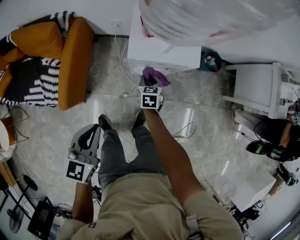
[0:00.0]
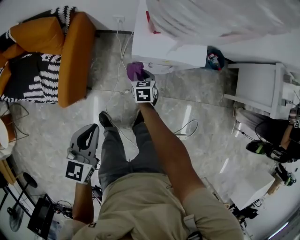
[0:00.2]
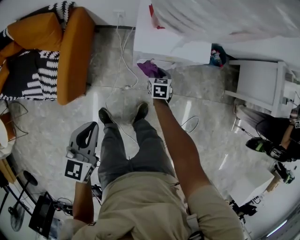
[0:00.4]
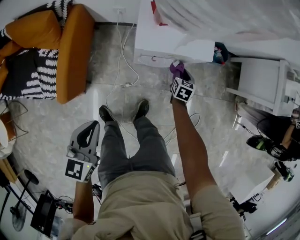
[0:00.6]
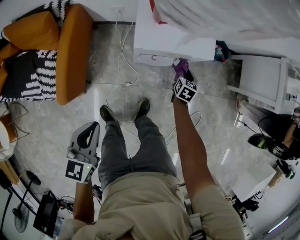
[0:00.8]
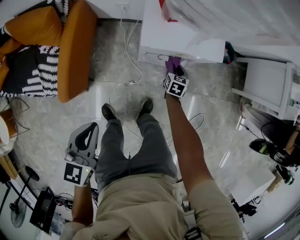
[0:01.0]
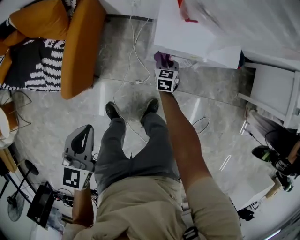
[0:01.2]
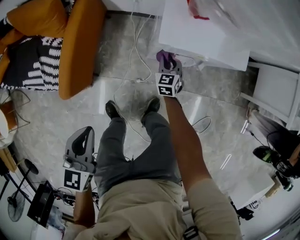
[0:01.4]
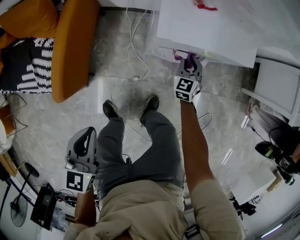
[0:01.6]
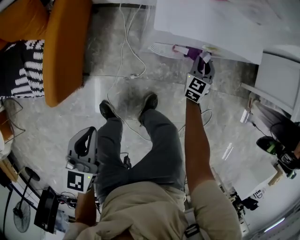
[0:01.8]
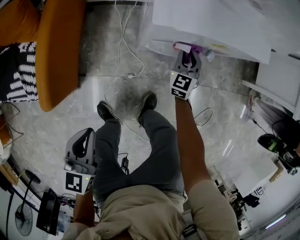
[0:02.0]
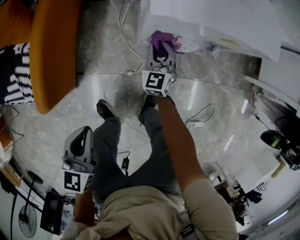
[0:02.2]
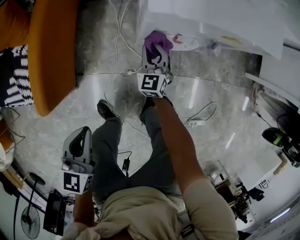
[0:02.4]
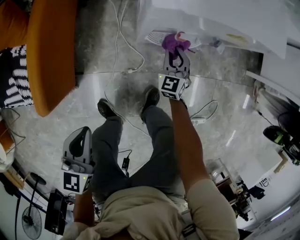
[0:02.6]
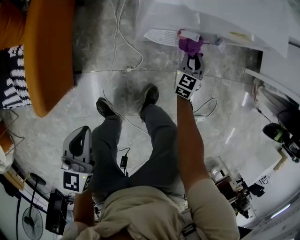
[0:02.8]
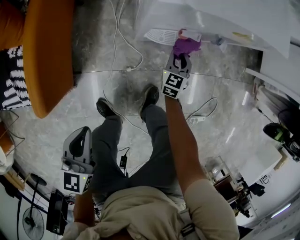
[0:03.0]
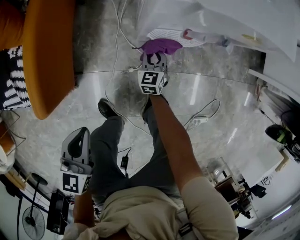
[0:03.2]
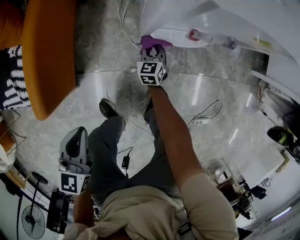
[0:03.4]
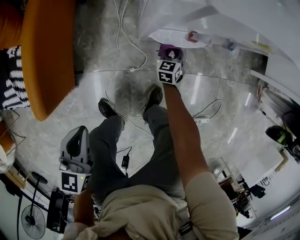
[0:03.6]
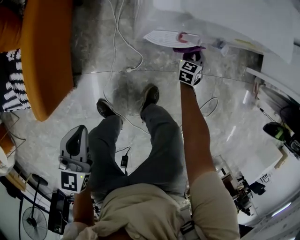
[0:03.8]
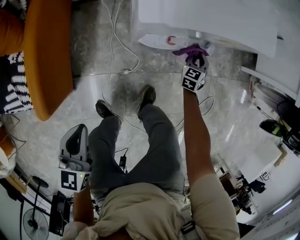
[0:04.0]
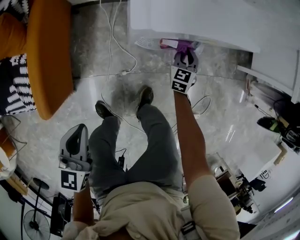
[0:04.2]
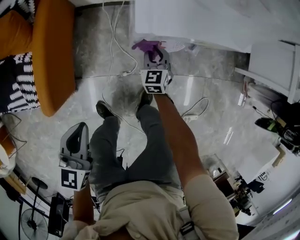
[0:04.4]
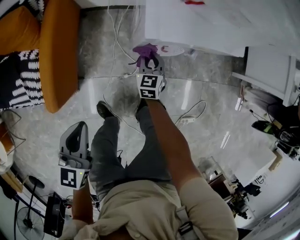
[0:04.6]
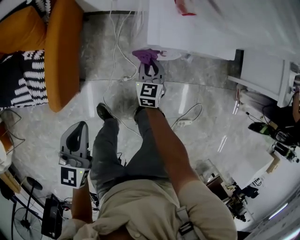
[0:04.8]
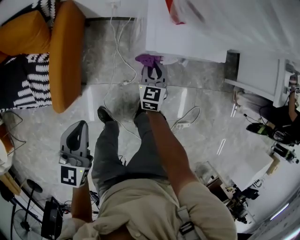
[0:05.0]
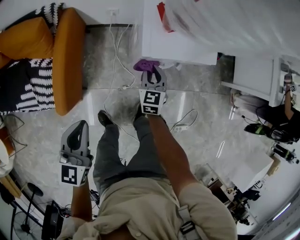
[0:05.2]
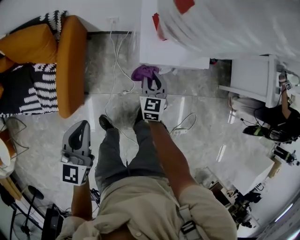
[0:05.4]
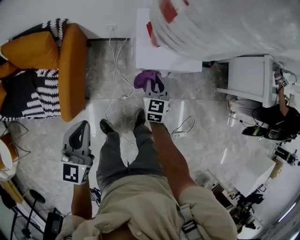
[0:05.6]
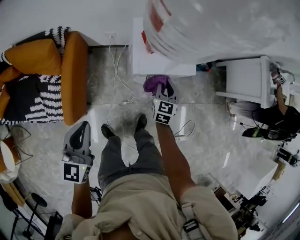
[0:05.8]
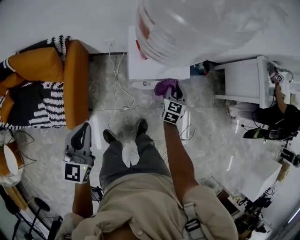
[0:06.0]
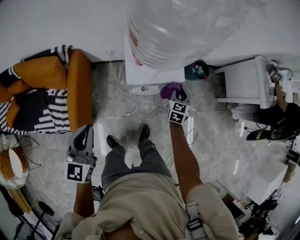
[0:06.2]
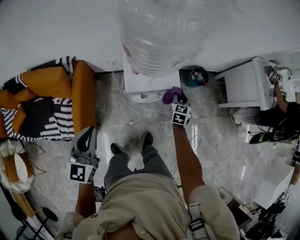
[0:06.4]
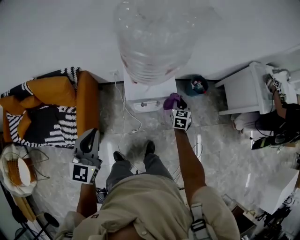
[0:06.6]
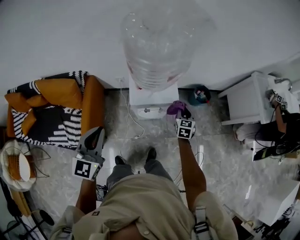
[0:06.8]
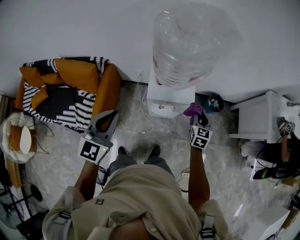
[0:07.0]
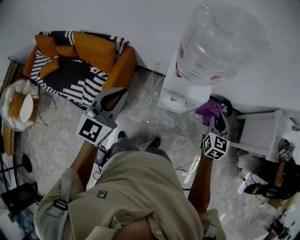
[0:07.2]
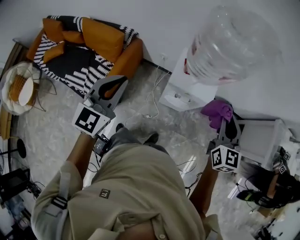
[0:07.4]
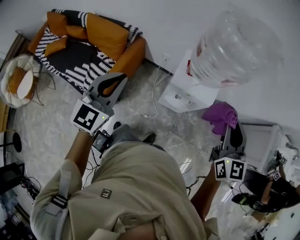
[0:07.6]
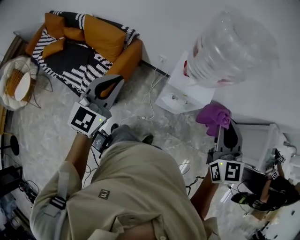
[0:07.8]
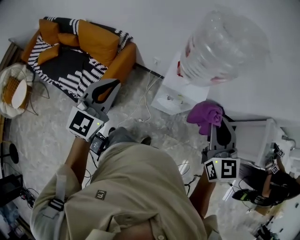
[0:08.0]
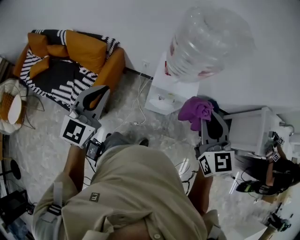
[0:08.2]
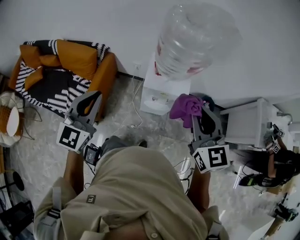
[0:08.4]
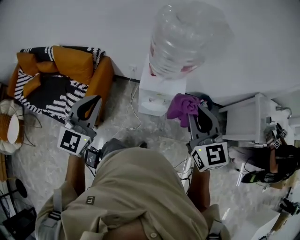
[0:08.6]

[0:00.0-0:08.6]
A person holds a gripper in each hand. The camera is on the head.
0:00.0 to 0:01.4: The right gripper goes left and right, about 25 cm each way, reversing 2 times, and turns by roughly 20 degrees, while the left gripper shifts approximately 10 cm downward and to the left.
0:01.4 to 0:02.8: The left gripper goes about 15 cm downward, while the right gripper moves left and right over about 20 cm, changing direction 2 times, and changes its angle by approximately 20 degrees.
0:02.8 to 0:04.4: The left gripper shifts approximately 10 cm upward. The right gripper moves left and right over about 25 cm, changing direction 2 times.
0:04.4 to 0:05.8: Both grippers move upward, approximately 25 cm.
0:05.8 to 0:07.2: The right gripper shifts roughly 30 cm upward and to the right. The left gripper goes approximately 20 cm upward.
0:07.2 to 0:08.6: The left gripper moves about 5 cm, while the right gripper heads upward, backward and to the left, covering about 20 cm, and turns by roughly 20 degrees.

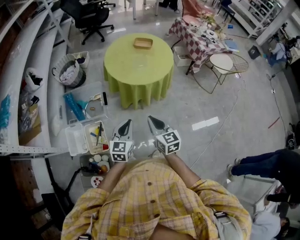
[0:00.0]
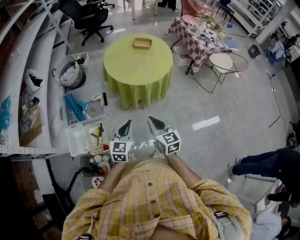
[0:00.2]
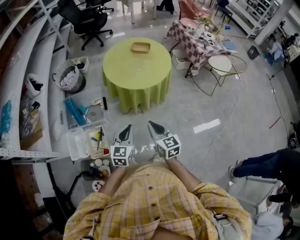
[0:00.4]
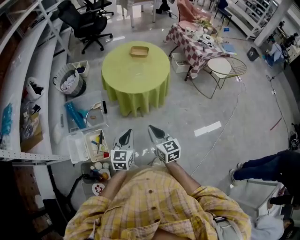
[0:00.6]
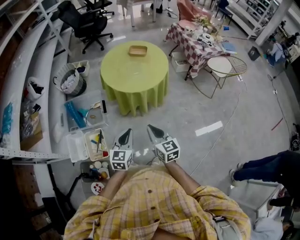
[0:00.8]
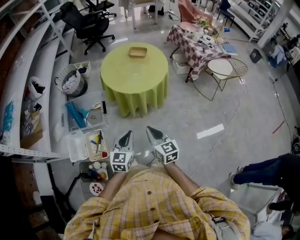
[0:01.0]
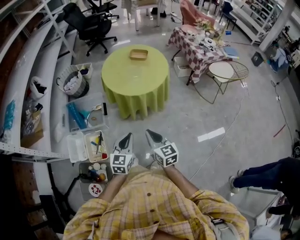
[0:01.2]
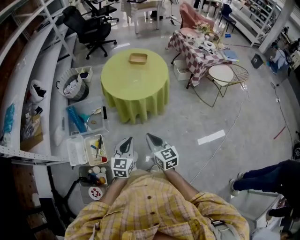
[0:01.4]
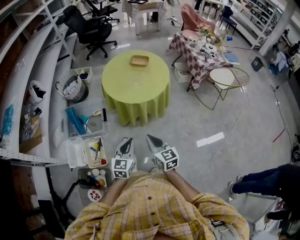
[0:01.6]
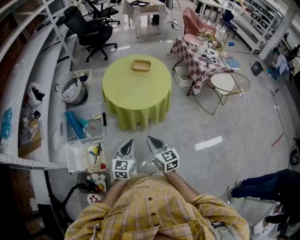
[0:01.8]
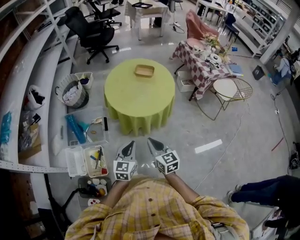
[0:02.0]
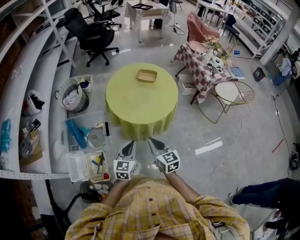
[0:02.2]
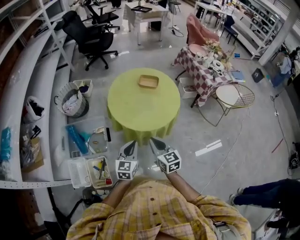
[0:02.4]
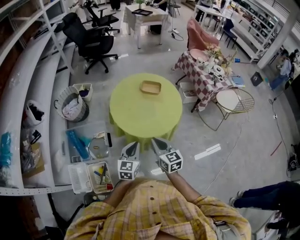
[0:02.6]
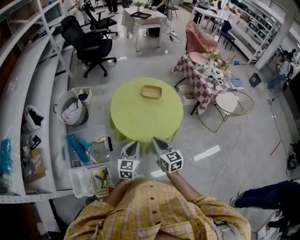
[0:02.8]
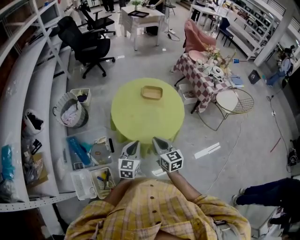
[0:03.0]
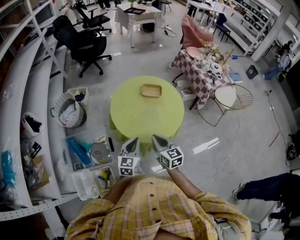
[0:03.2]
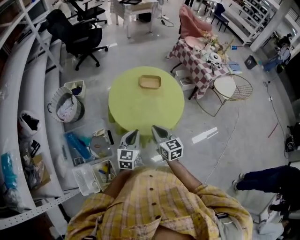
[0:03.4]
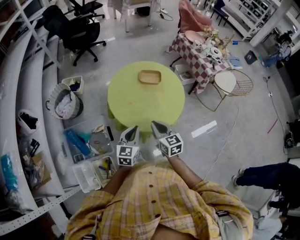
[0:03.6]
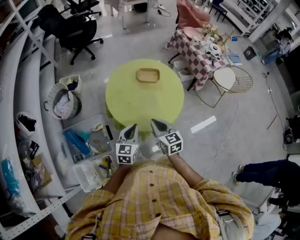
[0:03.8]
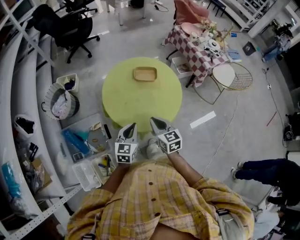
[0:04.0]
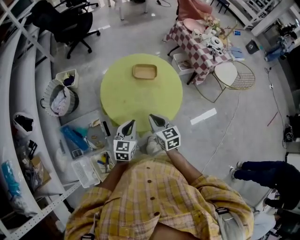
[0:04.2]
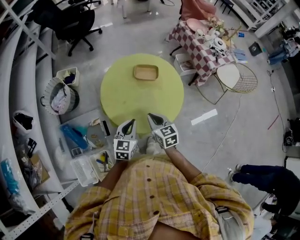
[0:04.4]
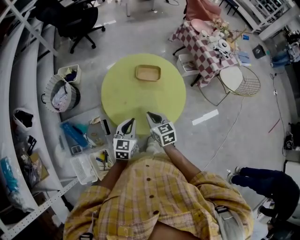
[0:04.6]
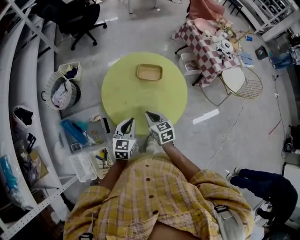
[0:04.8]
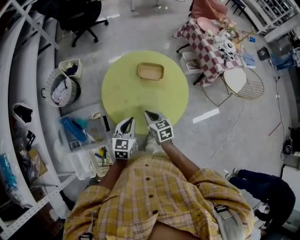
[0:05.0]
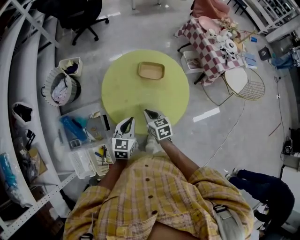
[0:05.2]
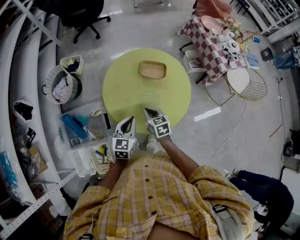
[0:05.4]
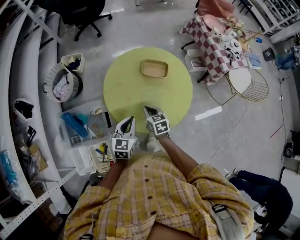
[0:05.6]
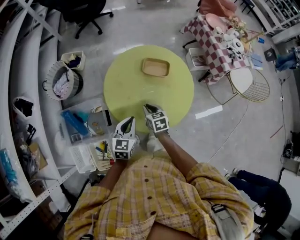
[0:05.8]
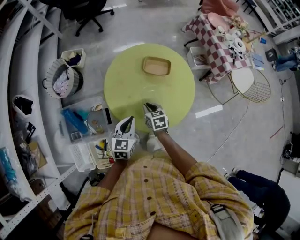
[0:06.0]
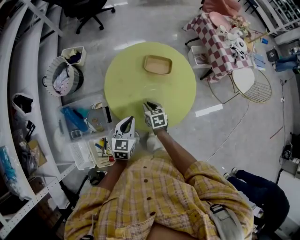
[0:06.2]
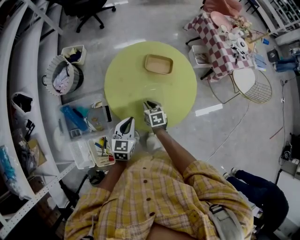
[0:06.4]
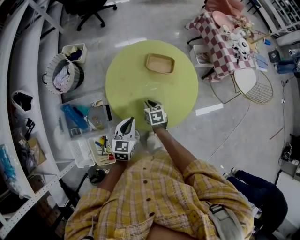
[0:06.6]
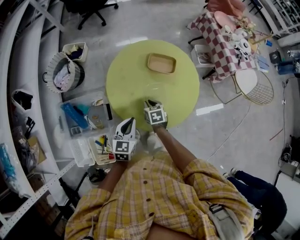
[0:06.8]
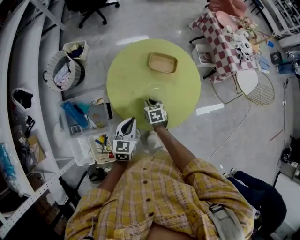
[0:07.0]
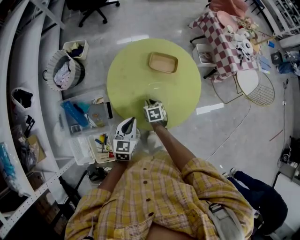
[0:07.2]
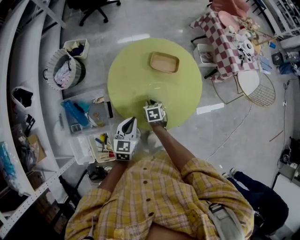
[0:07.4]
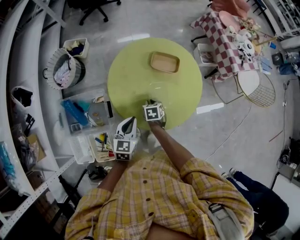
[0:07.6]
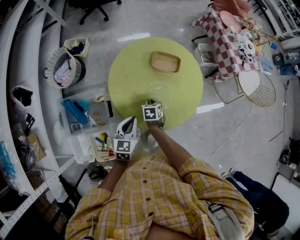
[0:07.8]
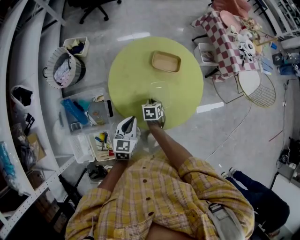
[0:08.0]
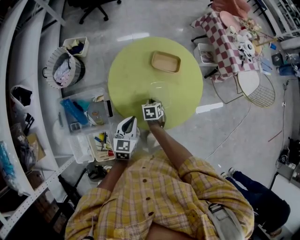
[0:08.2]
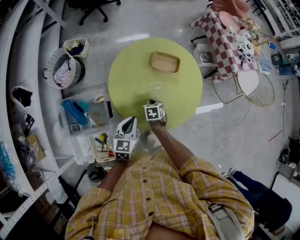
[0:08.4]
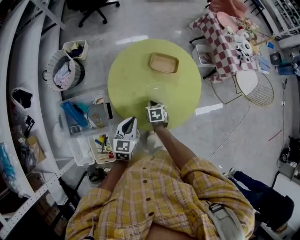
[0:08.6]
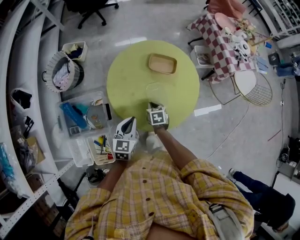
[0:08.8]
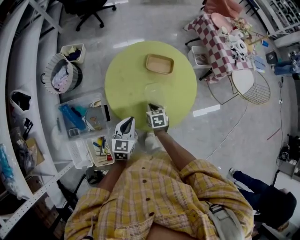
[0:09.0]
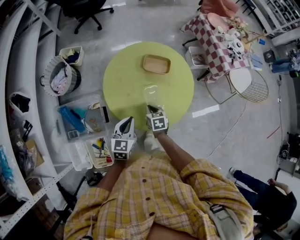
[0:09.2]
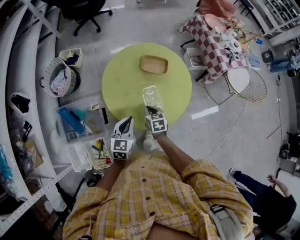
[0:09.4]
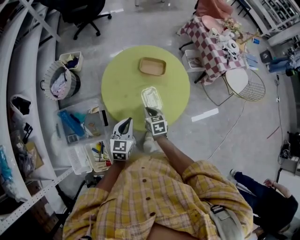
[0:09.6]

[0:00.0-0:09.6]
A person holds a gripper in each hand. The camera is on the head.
0:00.0 to 0:01.6: The grippers both shift to the right by roughly 5 cm.
0:01.6 to 0:03.2: The two grippers go about 30 cm forward.
0:03.2 to 0:04.8: The right gripper goes some 20 cm forward and downward. Meanwhile the left gripper moves forward, roughly 15 cm.
0:04.8 to 0:06.4: The right gripper is displaced downward and forward by approximately 15 cm.
0:06.4 to 0:08.0: The grippers stay close to where they were, moving slightly.
0:08.0 to 0:09.6: The right gripper moves upward and backward, approximately 10 cm, and changes its angle by approximately 20 degrees.

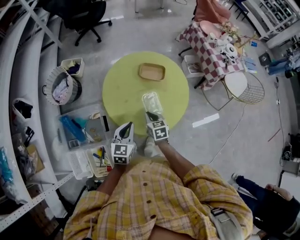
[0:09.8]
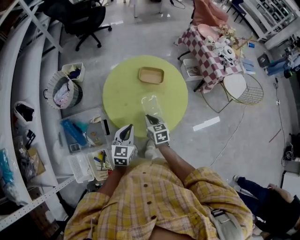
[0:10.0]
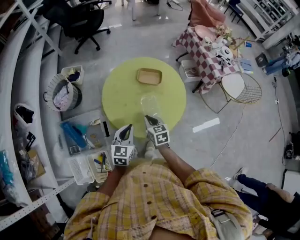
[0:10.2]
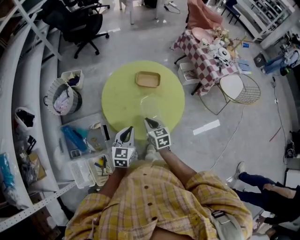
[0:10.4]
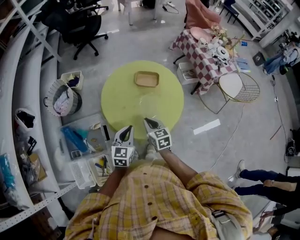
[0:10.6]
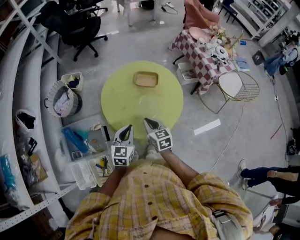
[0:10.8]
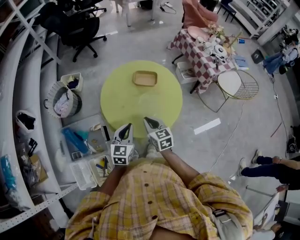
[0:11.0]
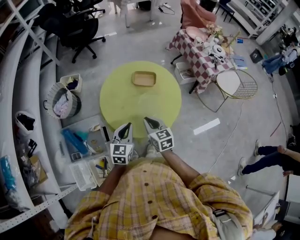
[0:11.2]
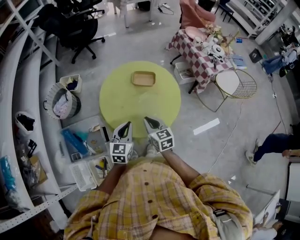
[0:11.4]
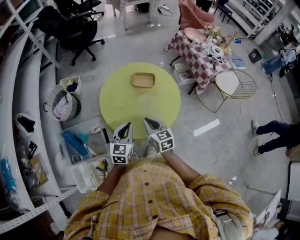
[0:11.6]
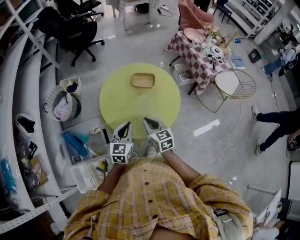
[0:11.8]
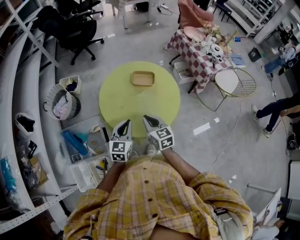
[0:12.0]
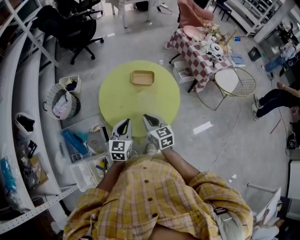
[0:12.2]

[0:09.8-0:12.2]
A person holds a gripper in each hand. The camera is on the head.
0:09.8 to 0:11.0: The right gripper heads upward, covering some 10 cm.
0:11.0 to 0:12.2: The grippers stay close to where they were, moving slightly.

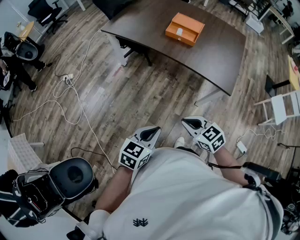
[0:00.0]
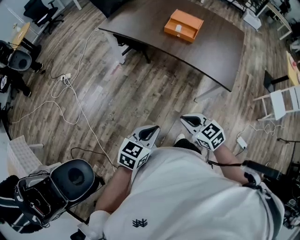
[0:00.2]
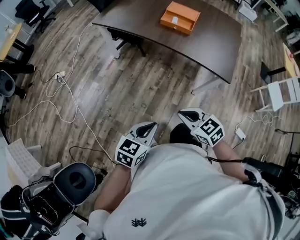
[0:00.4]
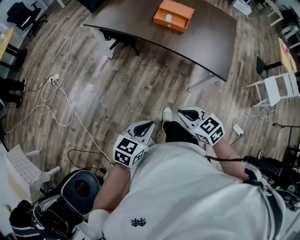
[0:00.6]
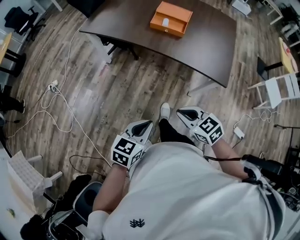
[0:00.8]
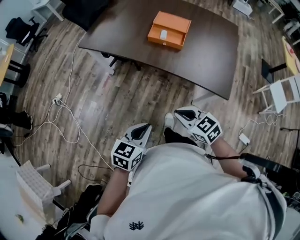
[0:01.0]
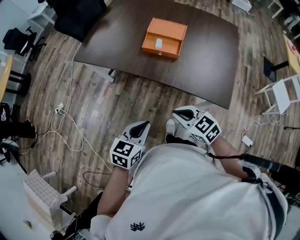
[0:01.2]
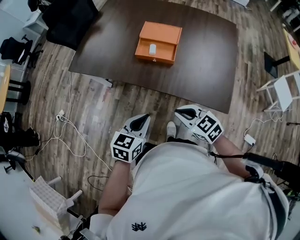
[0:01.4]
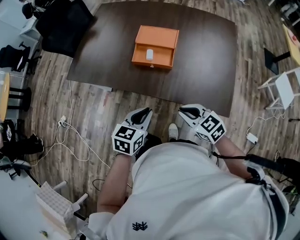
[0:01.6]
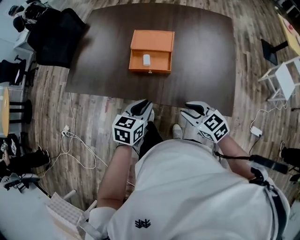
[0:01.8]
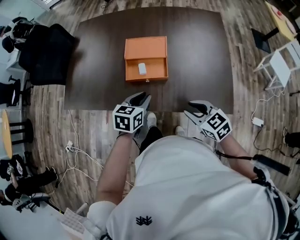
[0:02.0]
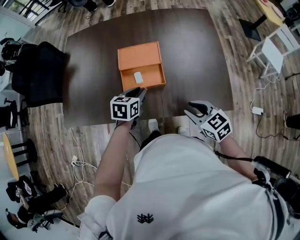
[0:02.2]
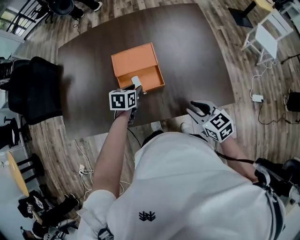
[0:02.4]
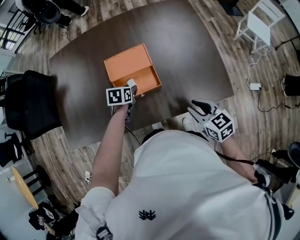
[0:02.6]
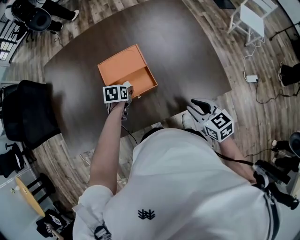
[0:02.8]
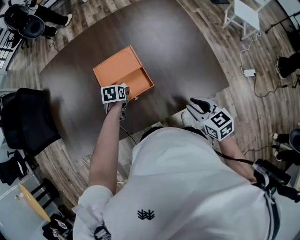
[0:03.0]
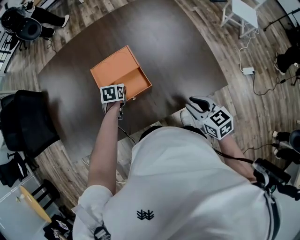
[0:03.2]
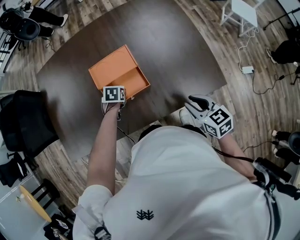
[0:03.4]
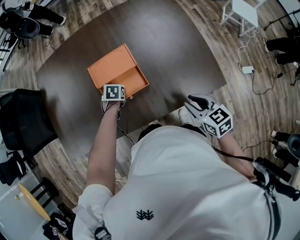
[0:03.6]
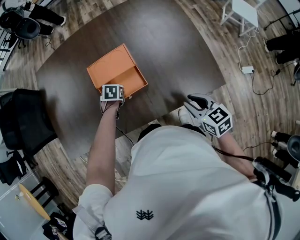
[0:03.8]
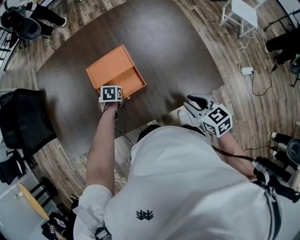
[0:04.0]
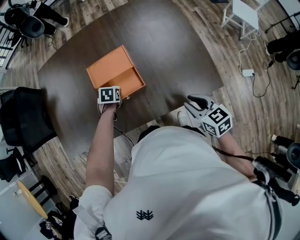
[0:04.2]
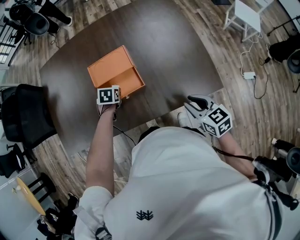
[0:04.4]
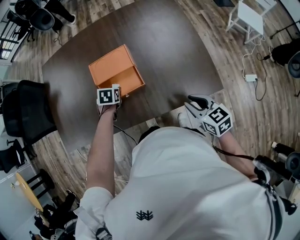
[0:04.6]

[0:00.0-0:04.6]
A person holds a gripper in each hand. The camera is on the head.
0:00.0 to 0:01.6: Both grippers are carried forward, approximately 40 cm.
0:01.6 to 0:03.0: The left gripper moves approximately 40 cm, changes its angle by roughly 40 degrees, and opens up. Meanwhile the right gripper moves approximately 15 cm, turns by roughly 50 degrees, and opens.
0:03.0 to 0:04.6: The right gripper travels to the right by roughly 5 cm.
